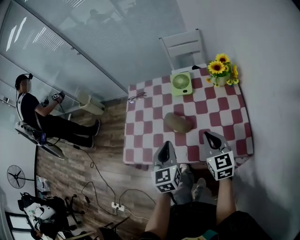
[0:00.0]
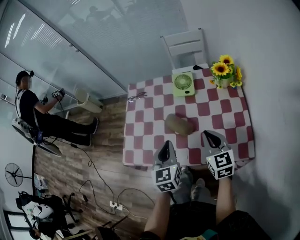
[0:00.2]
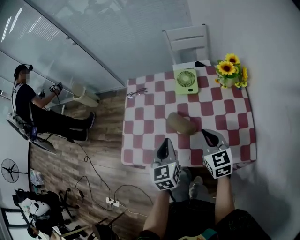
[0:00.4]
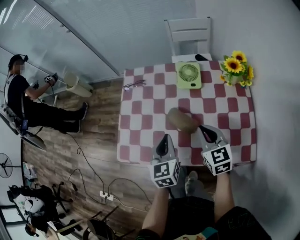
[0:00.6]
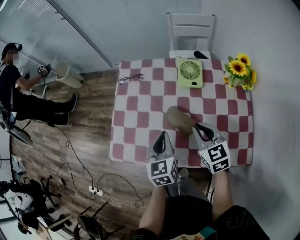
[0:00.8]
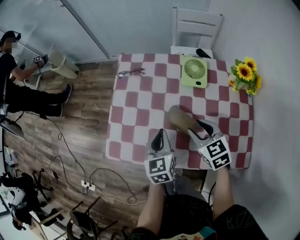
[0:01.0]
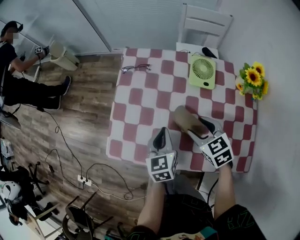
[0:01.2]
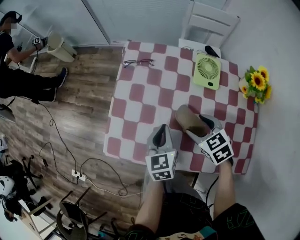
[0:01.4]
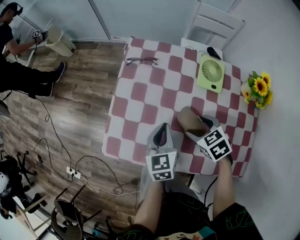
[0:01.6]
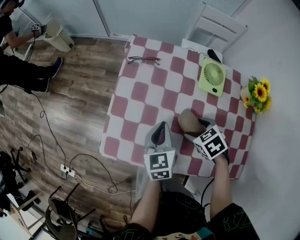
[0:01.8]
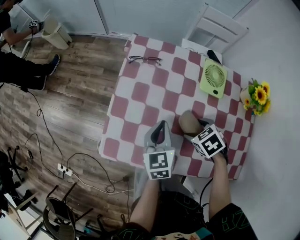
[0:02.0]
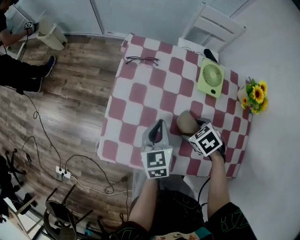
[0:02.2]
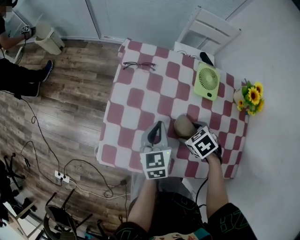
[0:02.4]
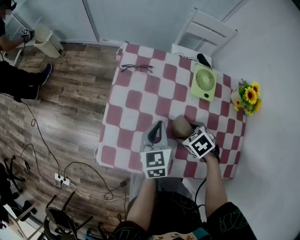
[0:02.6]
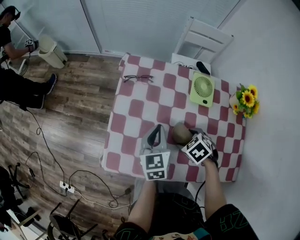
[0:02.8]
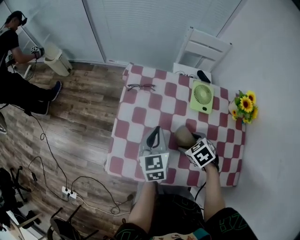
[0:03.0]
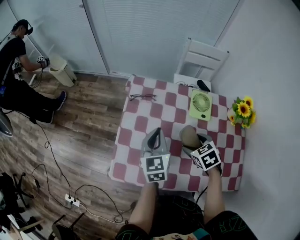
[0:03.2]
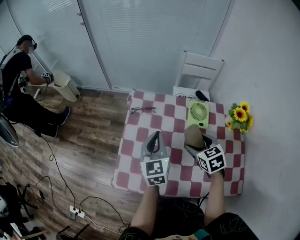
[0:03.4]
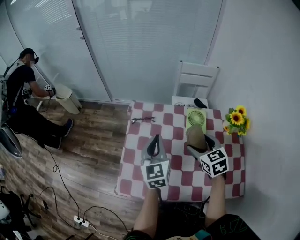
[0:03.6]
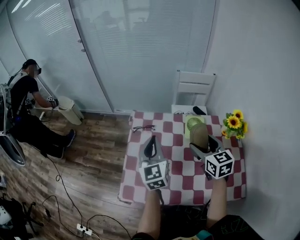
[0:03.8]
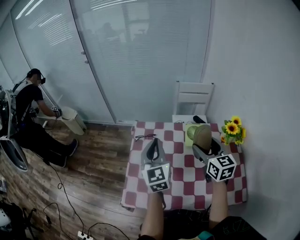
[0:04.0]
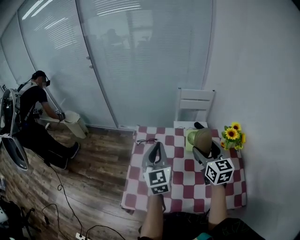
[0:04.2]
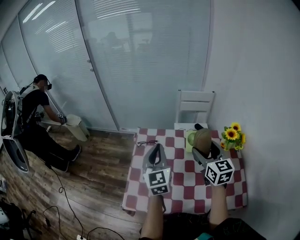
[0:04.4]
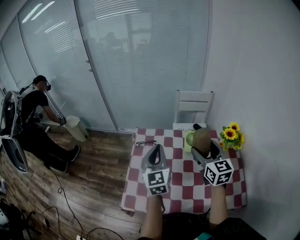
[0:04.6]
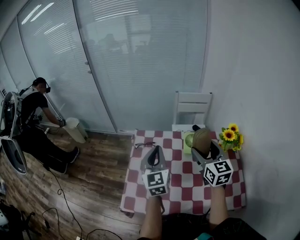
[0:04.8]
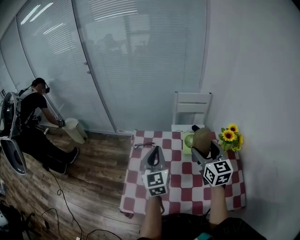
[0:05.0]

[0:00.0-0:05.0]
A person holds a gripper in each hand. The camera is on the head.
0:00.0 to 0:01.6: The grippers both shift forward, downward and to the left by about 20 cm. The right gripper angles its fingers downward, by approximately 40 degrees, and opens up.
0:01.6 to 0:03.4: Both grippers travel together upward, roughly 10 cm. The right gripper swivels some 20 degrees.
0:03.4 to 0:05.0: The left gripper goes about 10 cm upward, while the right gripper shifts approximately 20 cm upward, and points its fingers about 40 degrees further upward.

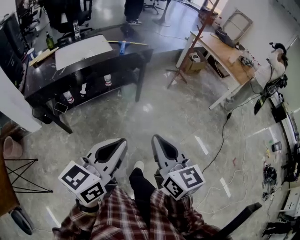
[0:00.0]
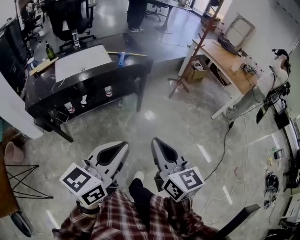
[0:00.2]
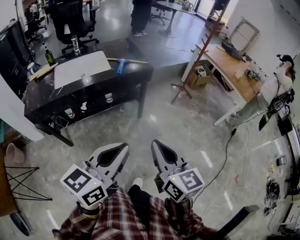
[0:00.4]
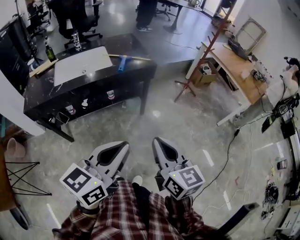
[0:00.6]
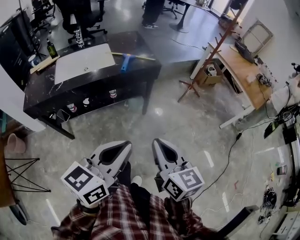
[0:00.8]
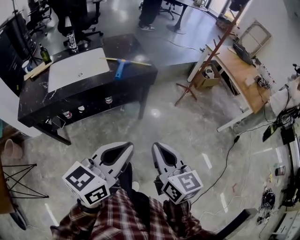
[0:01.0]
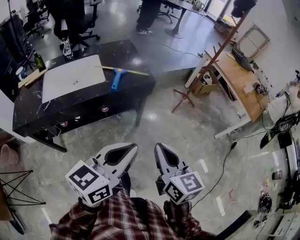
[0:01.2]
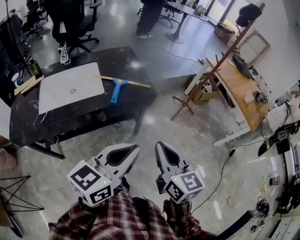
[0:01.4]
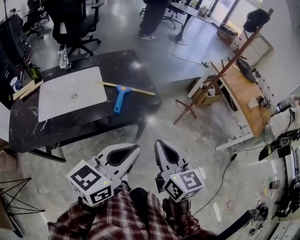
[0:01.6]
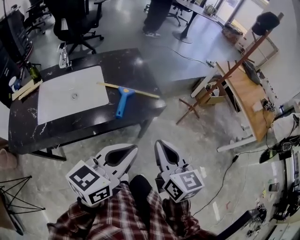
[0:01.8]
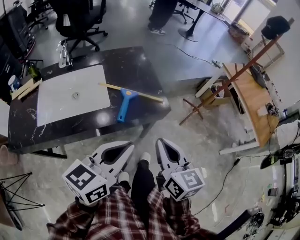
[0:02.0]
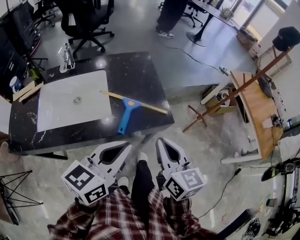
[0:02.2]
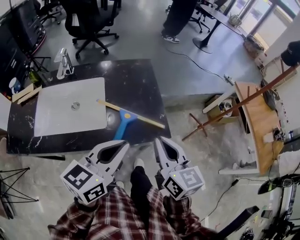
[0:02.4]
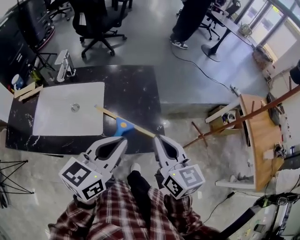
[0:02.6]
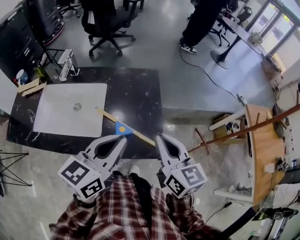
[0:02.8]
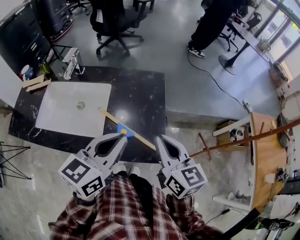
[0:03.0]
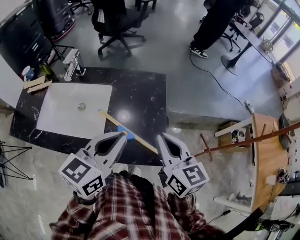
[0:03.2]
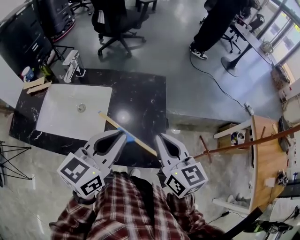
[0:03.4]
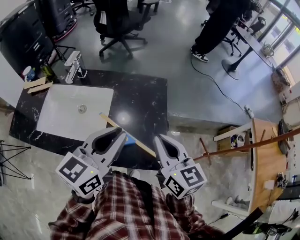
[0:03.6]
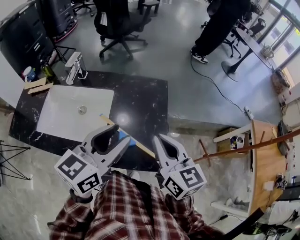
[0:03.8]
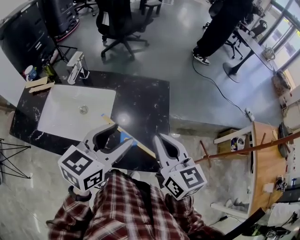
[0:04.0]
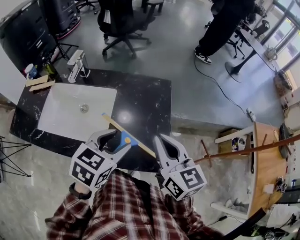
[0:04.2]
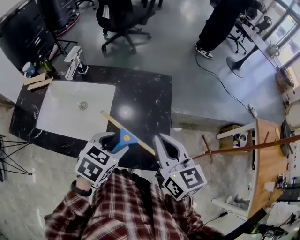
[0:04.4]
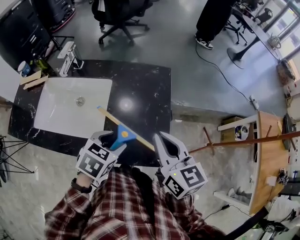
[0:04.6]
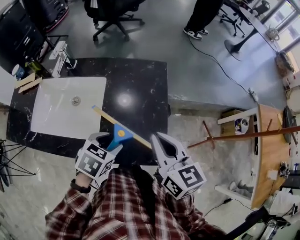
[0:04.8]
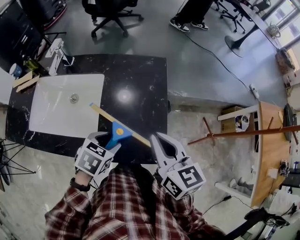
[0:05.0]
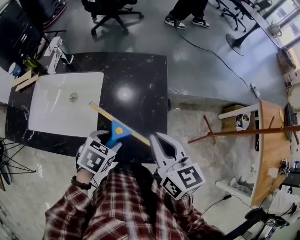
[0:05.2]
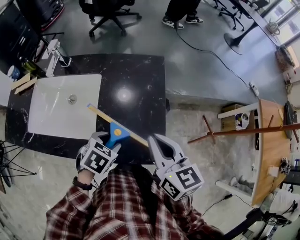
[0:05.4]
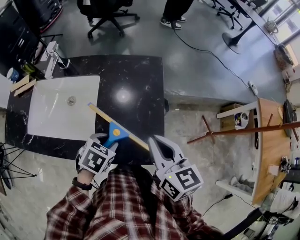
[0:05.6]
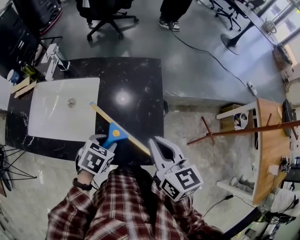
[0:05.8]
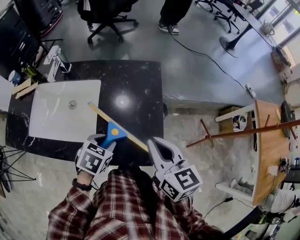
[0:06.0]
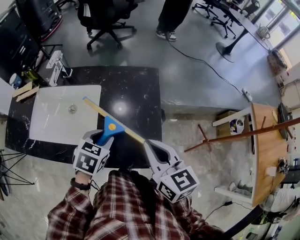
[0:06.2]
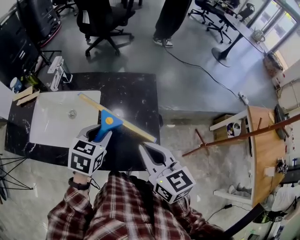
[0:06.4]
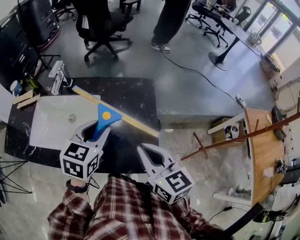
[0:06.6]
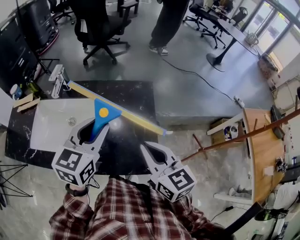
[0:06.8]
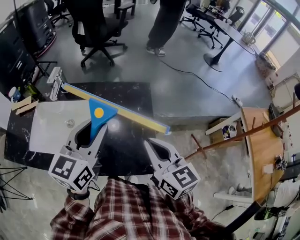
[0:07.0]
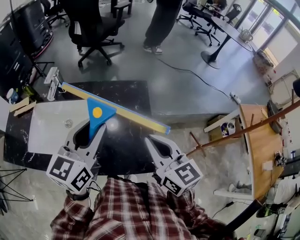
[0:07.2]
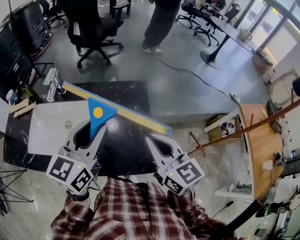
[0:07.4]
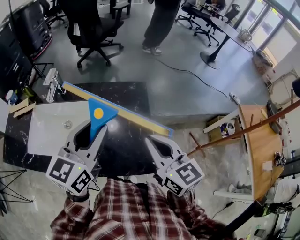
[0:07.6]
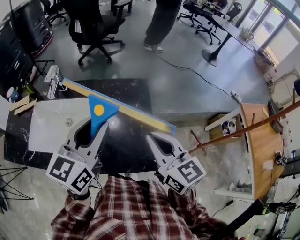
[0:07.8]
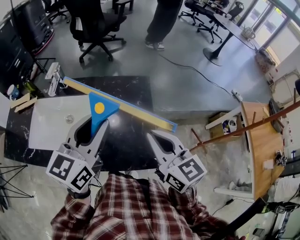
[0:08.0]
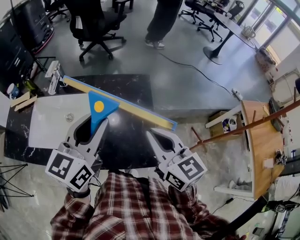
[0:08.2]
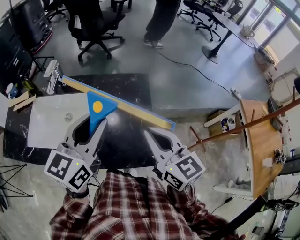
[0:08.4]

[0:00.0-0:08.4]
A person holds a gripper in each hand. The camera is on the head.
0:00.0 to 0:01.4: The two grippers go about 40 cm forward.
0:01.4 to 0:02.8: The right gripper moves approximately 40 cm, and swivels approximately 20 degrees. Meanwhile the left gripper moves about 35 cm, and swivels roughly 30 degrees.
0:02.8 to 0:04.2: The right gripper moves forward, roughly 5 cm. Meanwhile the left gripper goes about 10 cm downward and forward, rotates some 30 degrees, and opens its fingers.
0:04.2 to 0:05.6: The left gripper moves downward, about 15 cm, and changes its angle by about 30 degrees, while the right gripper moves downward, about 5 cm.
0:05.6 to 0:07.0: The left gripper moves upward, some 25 cm, and tips its fingers upward by approximately 60 degrees, while the right gripper is displaced upward by approximately 5 cm.
0:07.0 to 0:08.4: There are only small adjustments of the grippers.

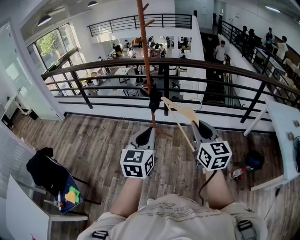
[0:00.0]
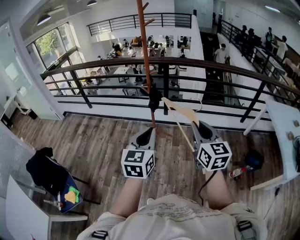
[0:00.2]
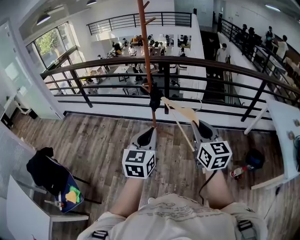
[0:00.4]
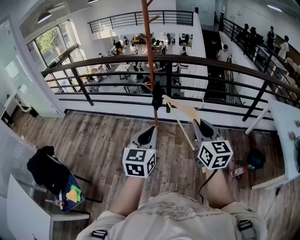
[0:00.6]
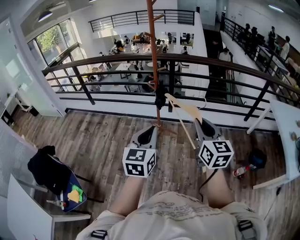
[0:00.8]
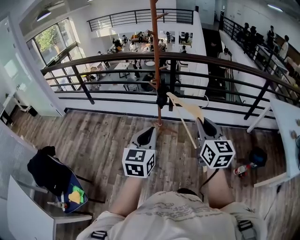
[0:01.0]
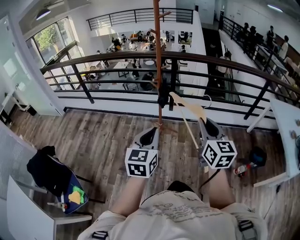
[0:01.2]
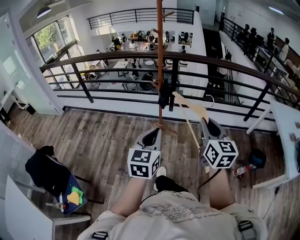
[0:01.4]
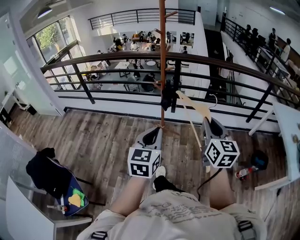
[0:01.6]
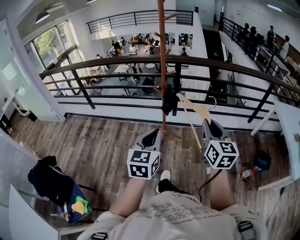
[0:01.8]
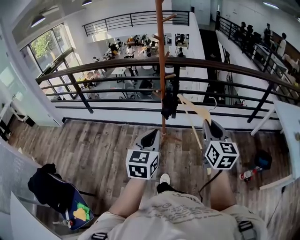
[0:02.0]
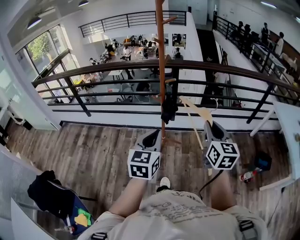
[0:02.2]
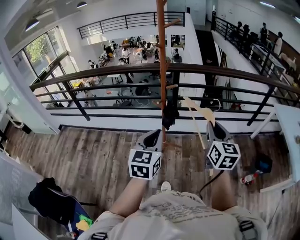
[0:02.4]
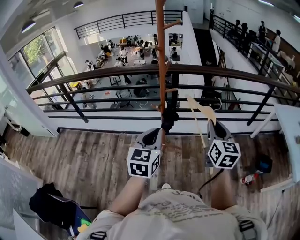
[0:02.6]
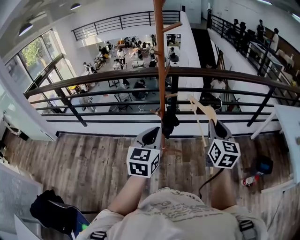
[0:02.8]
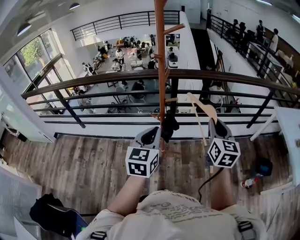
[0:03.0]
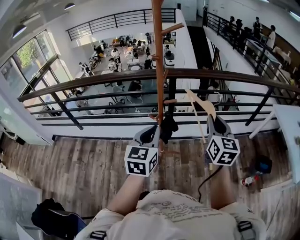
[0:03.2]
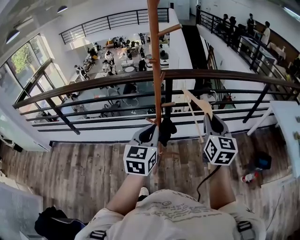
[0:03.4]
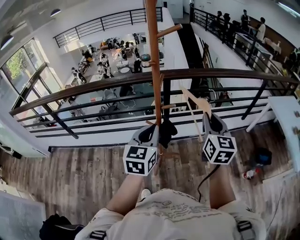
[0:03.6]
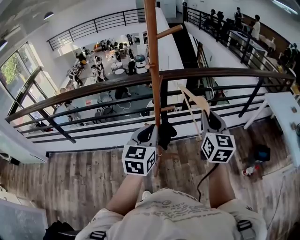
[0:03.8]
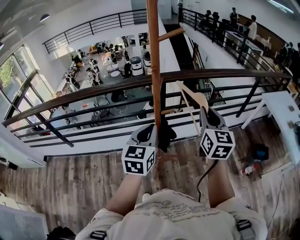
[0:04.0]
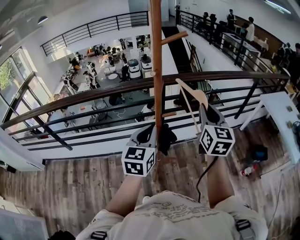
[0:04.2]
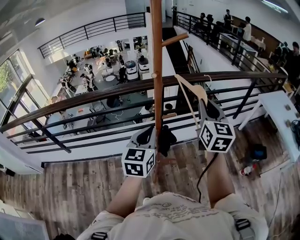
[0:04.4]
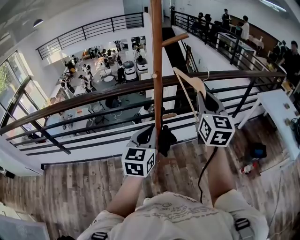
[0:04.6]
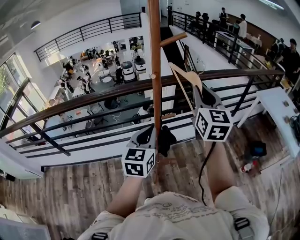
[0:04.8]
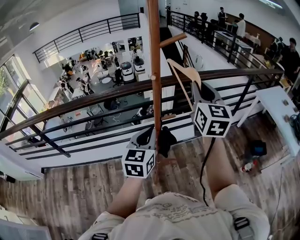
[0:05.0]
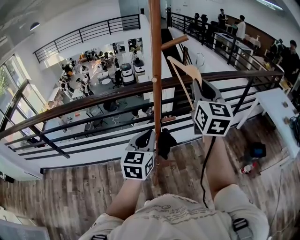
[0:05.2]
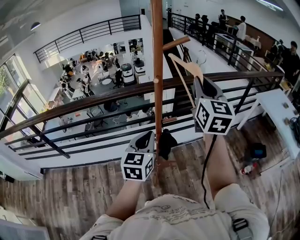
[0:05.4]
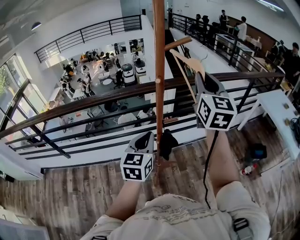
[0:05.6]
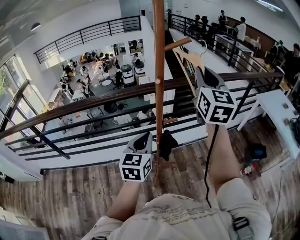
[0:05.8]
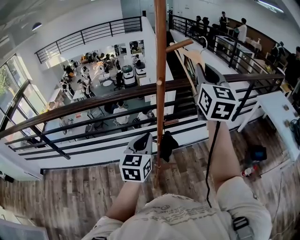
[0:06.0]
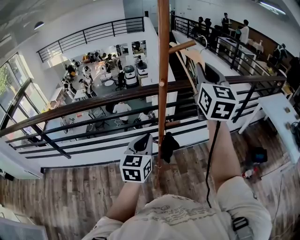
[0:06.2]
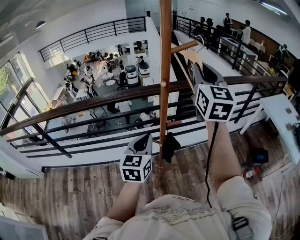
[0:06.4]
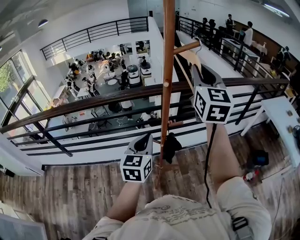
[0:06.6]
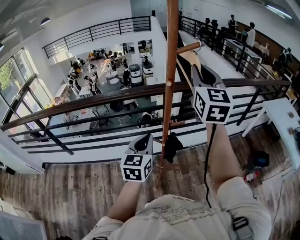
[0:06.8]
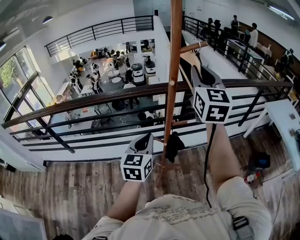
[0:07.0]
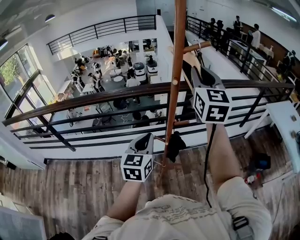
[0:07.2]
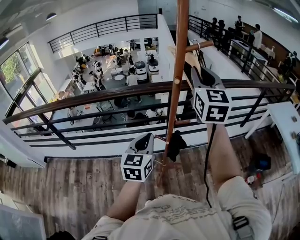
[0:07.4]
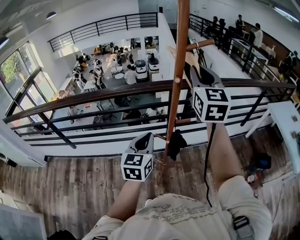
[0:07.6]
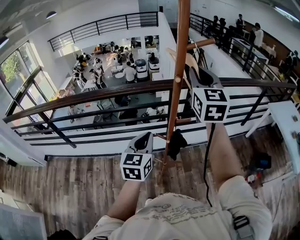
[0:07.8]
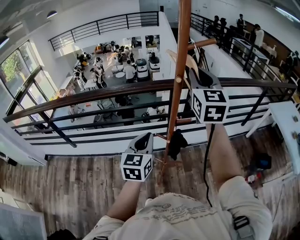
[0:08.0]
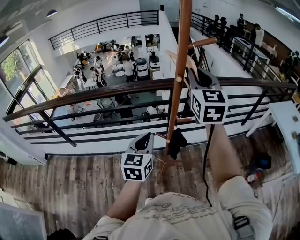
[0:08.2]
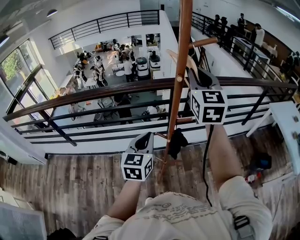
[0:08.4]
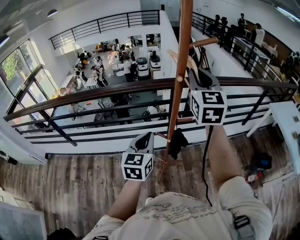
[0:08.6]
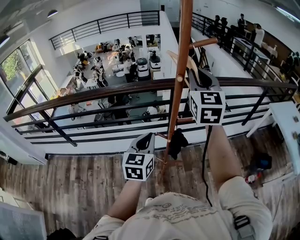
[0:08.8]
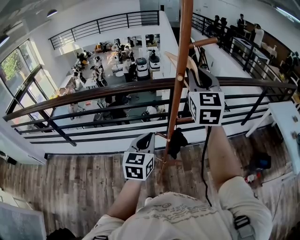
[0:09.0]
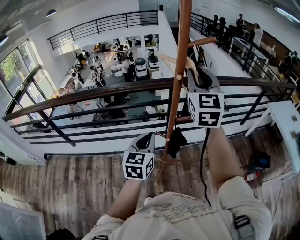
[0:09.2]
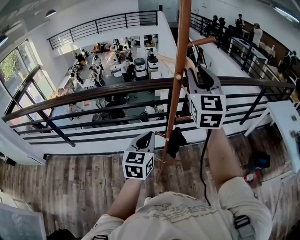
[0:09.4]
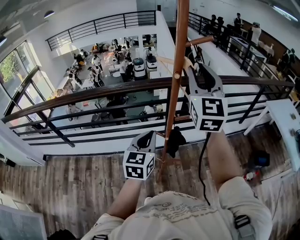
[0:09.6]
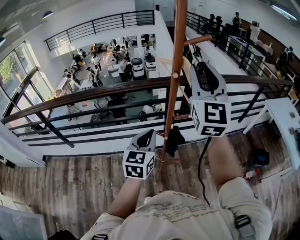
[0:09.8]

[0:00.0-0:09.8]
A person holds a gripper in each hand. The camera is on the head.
0:00.0 to 0:01.4: The grippers both shift to the left by roughly 5 cm.
0:01.4 to 0:02.8: The two grippers go some 30 cm forward.
0:02.8 to 0:04.2: The right gripper moves forward, to the left and upward, approximately 20 cm. Meanwhile the left gripper shifts roughly 20 cm forward and to the left.
0:04.2 to 0:05.6: The right gripper moves upward and forward, roughly 15 cm.
0:05.6 to 0:07.0: The right gripper goes some 5 cm to the left.
0:07.0 to 0:08.4: The right gripper changes place by about 5 cm.
0:08.4 to 0:09.8: The right gripper travels backward by approximately 5 cm.
